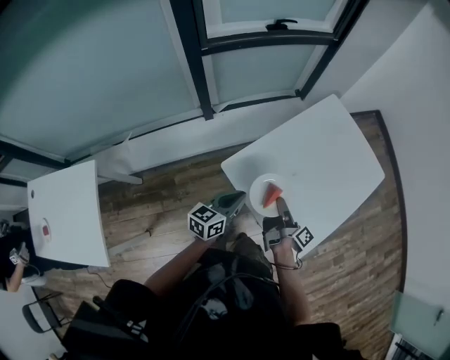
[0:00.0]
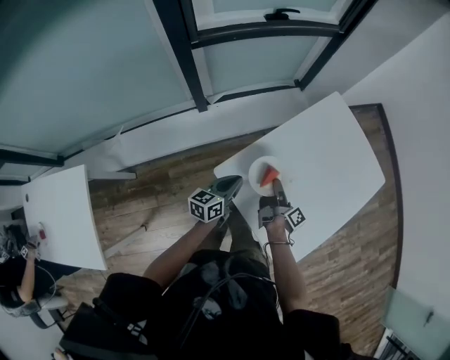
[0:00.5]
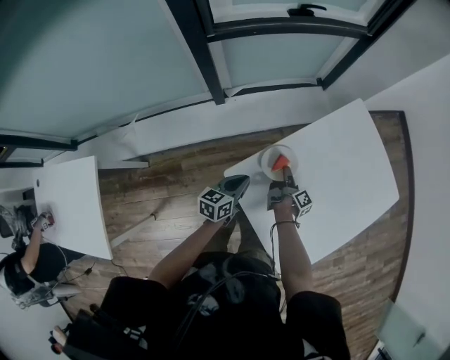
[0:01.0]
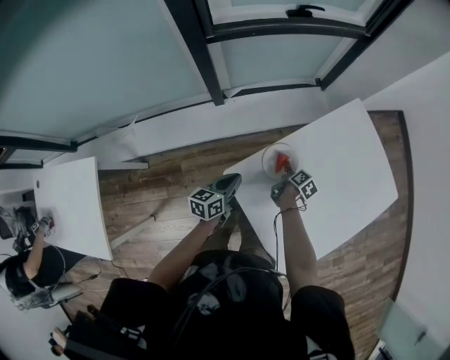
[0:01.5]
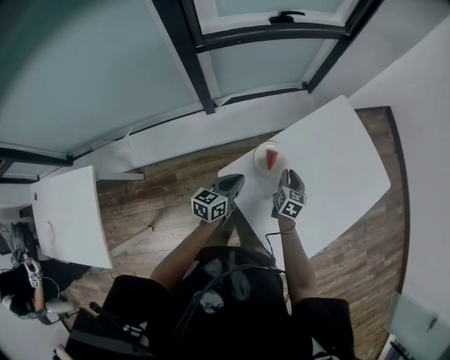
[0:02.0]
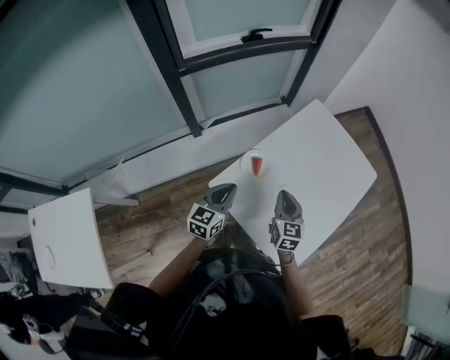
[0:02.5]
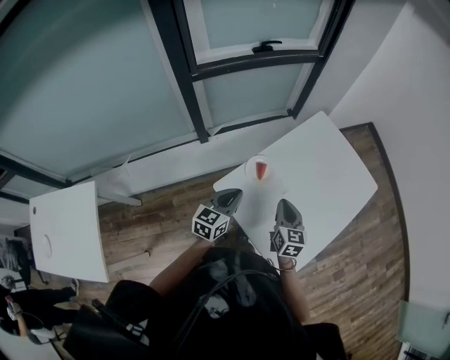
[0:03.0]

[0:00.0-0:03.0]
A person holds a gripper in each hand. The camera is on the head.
0:00.0 to 0:01.5: The left gripper changes place by some 15 cm.
0:01.5 to 0:03.0: The left gripper is displaced upward by roughly 10 cm, and turns by some 30 degrees.

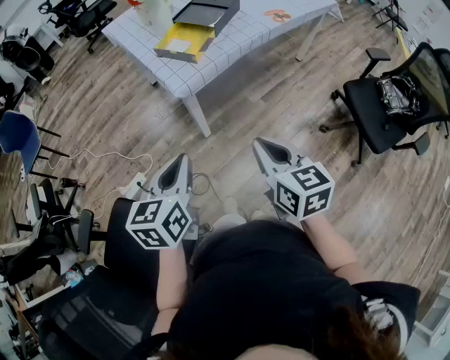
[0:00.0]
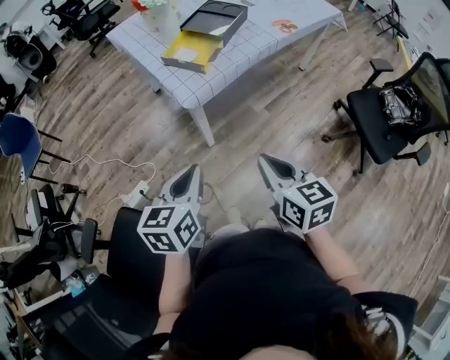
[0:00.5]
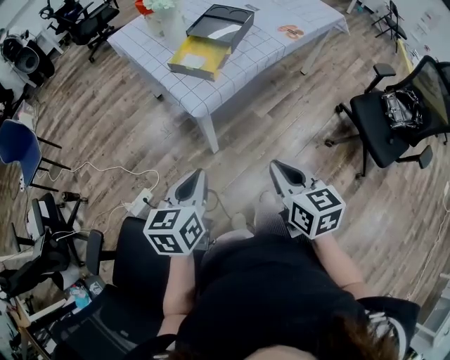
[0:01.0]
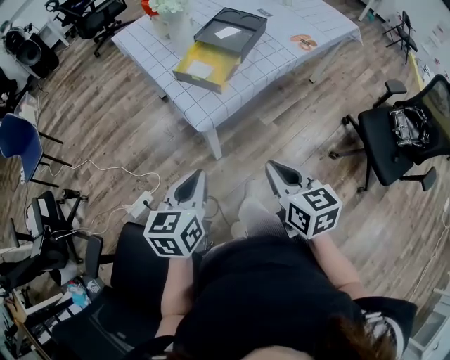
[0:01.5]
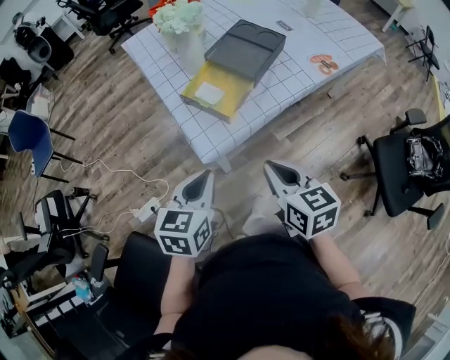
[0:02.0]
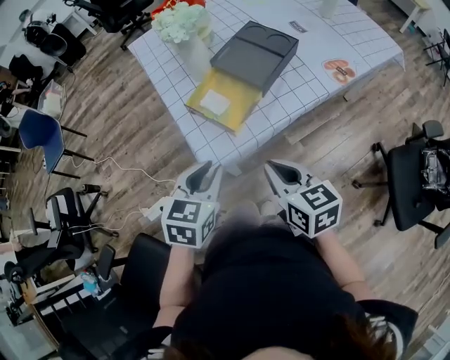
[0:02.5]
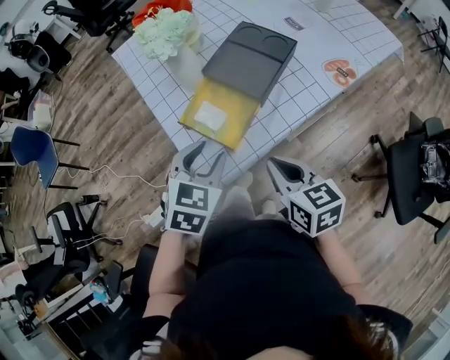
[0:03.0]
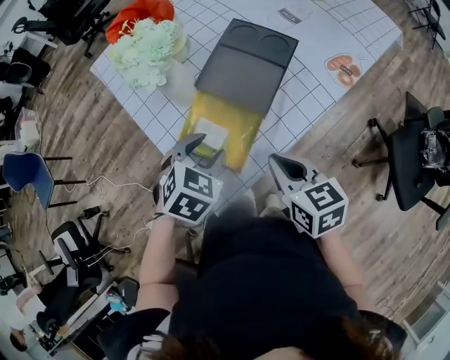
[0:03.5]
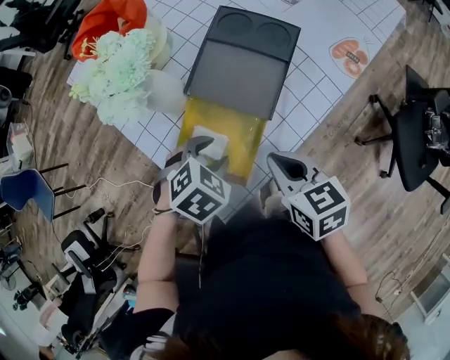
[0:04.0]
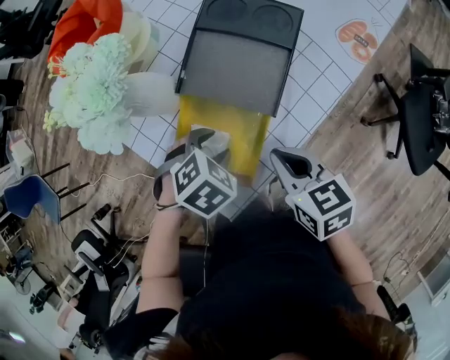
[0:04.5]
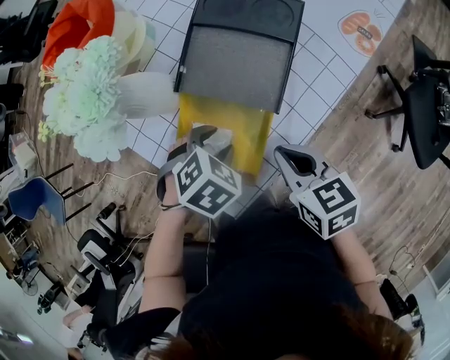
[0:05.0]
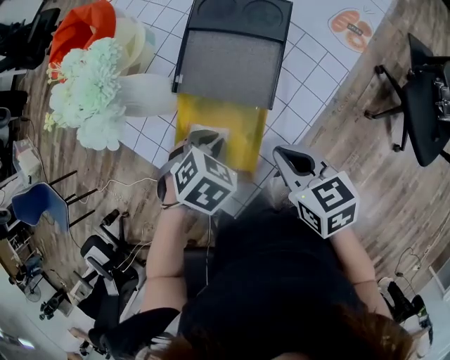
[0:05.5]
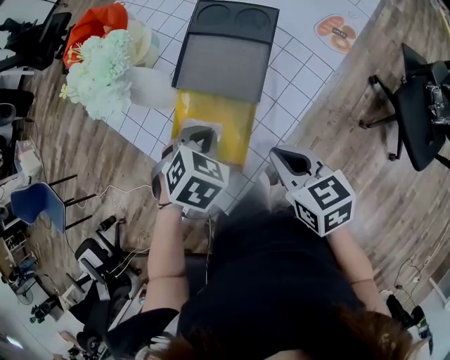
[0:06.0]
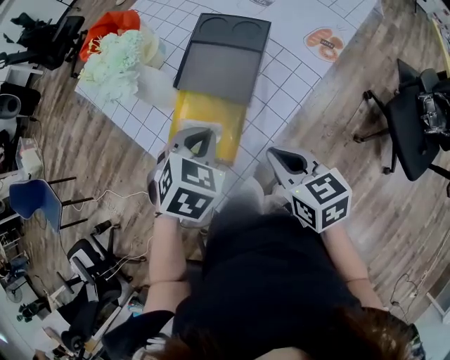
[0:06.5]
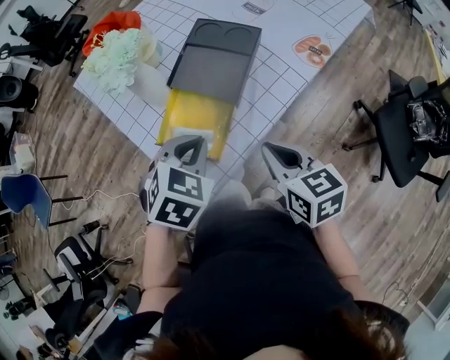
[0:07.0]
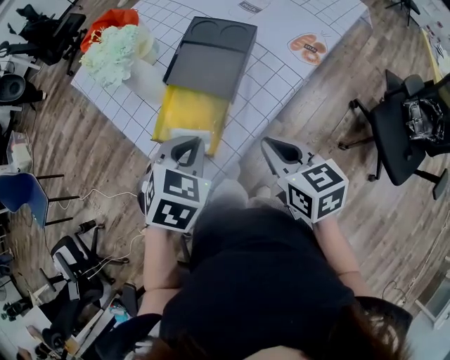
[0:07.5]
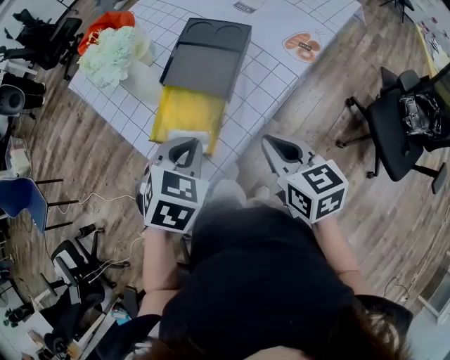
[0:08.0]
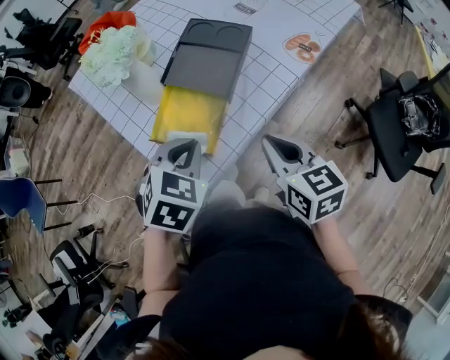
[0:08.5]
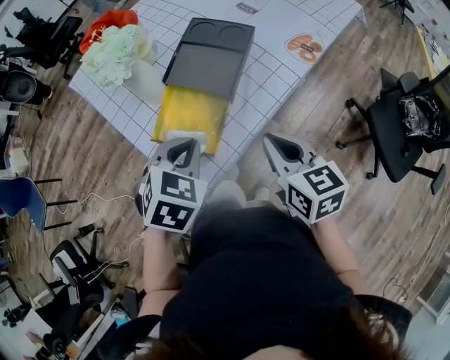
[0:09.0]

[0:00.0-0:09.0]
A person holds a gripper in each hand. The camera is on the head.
0:00.0 to 0:02.0: Both grippers move forward, about 25 cm.
0:02.0 to 0:04.5: The right gripper moves approximately 25 cm. The left gripper ends up about 35 cm from where it was, angles its fingers downward, by roughly 40 degrees, and opens.
0:04.5 to 0:07.0: The right gripper moves roughly 10 cm, while the left gripper shifts some 15 cm upward, turns by about 30 degrees, and closes up.
0:07.0 to 0:09.0: The grippers move only a little.

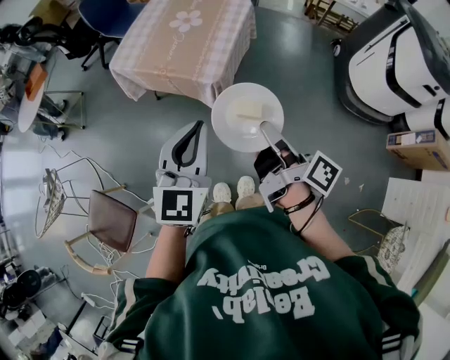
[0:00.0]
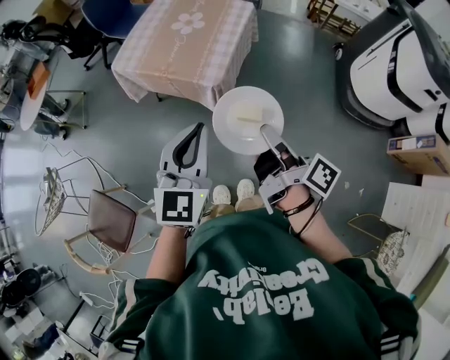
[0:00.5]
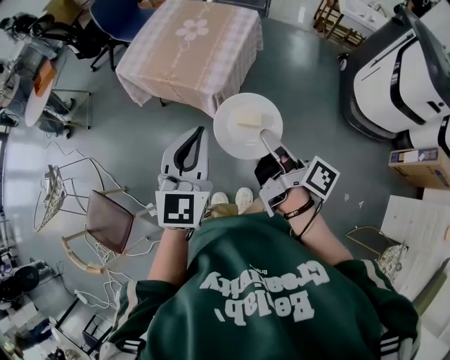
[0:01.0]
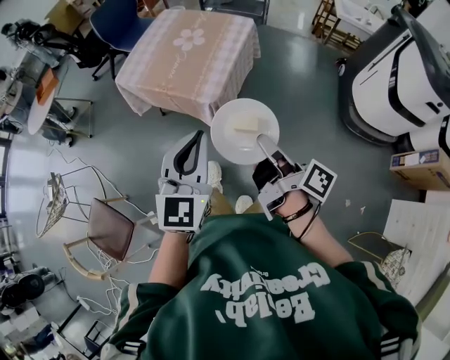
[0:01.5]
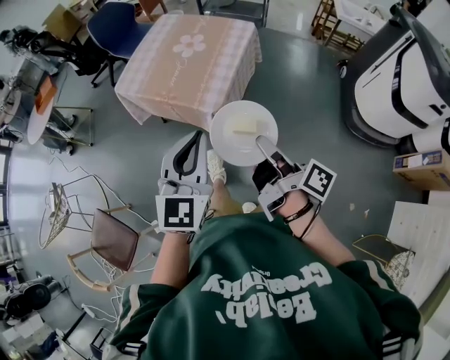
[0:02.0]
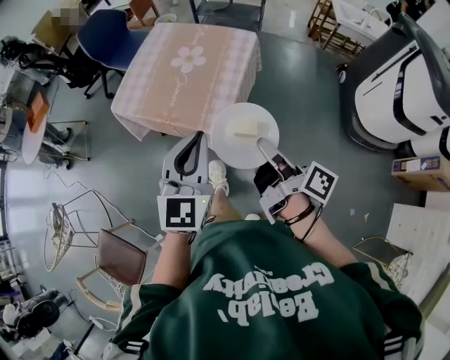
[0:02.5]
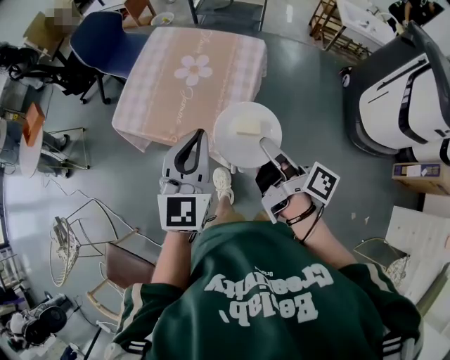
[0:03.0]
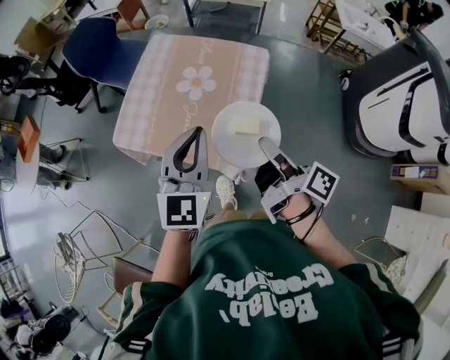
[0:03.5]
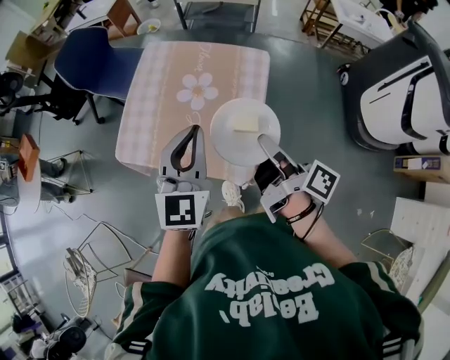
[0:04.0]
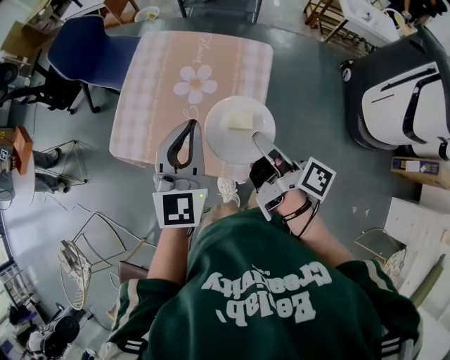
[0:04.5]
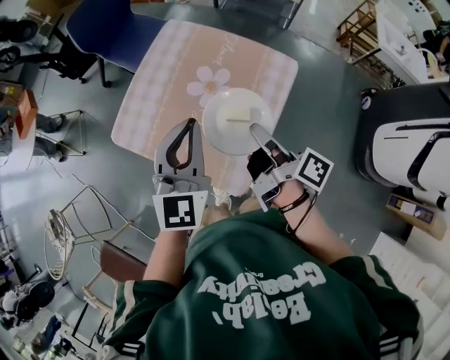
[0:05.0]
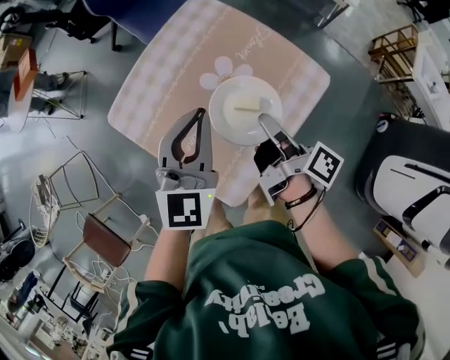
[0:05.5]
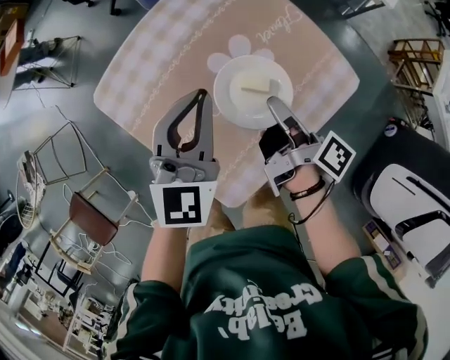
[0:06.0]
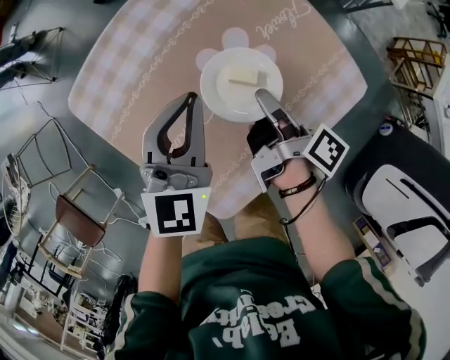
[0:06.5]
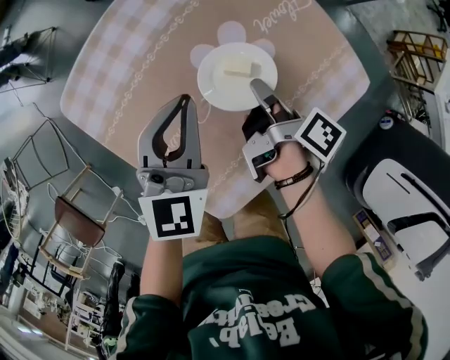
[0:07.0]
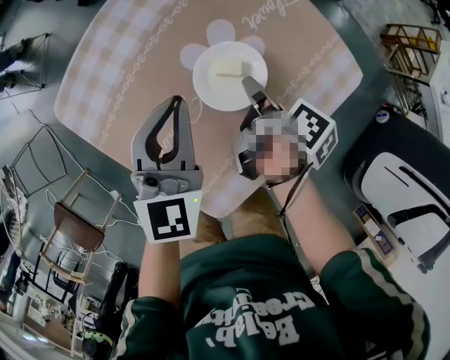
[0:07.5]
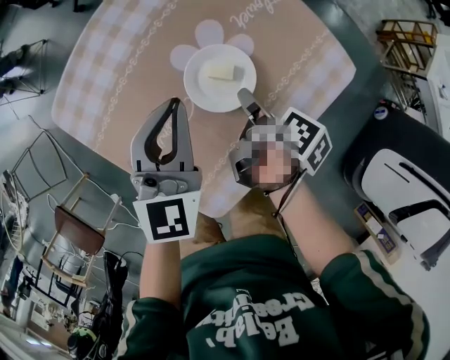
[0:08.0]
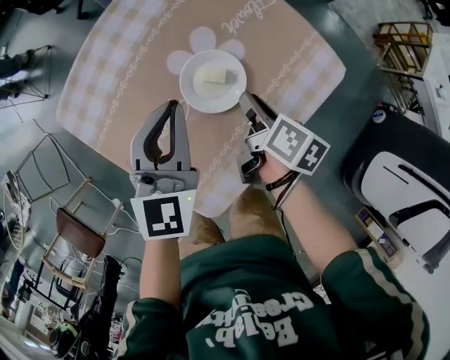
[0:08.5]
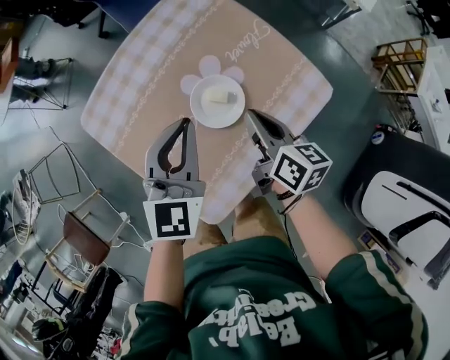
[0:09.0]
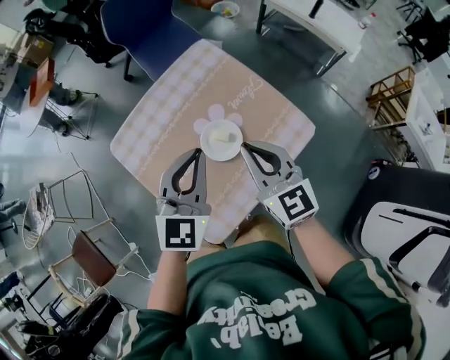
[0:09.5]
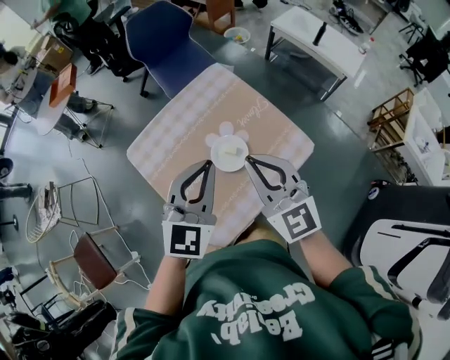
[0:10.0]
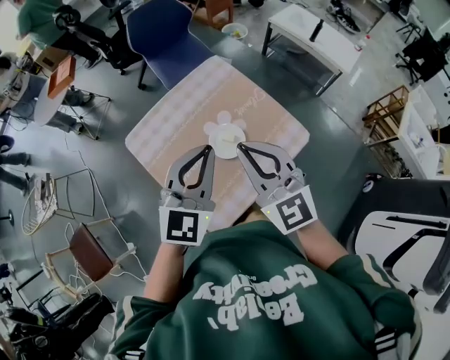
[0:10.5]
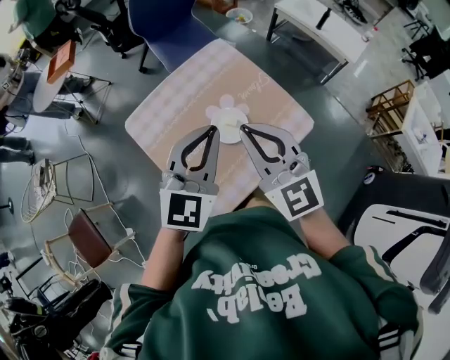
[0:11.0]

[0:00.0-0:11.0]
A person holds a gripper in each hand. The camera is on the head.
0:00.0 to 0:02.0: The left gripper ends up approximately 5 cm from where it was.
0:02.0 to 0:03.5: The left gripper shifts by about 30 cm.
0:03.5 to 0:05.5: The left gripper ends up about 20 cm from where it was, and rotates roughly 20 degrees.
0:05.5 to 0:07.5: The left gripper moves downward, about 15 cm.
0:07.5 to 0:09.0: The left gripper is displaced upward by roughly 5 cm.
0:09.0 to 0:11.0: The left gripper moves upward, about 20 cm.

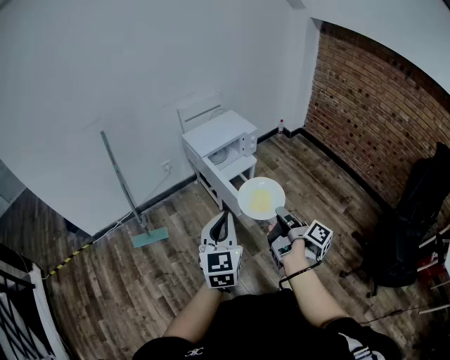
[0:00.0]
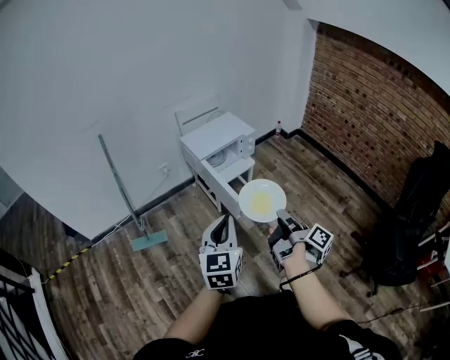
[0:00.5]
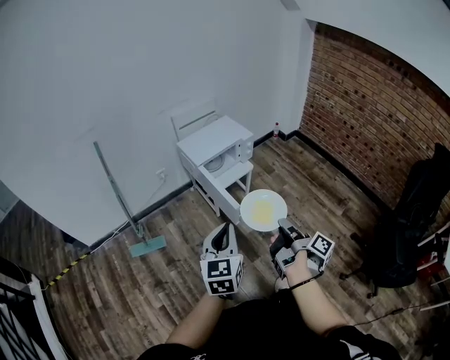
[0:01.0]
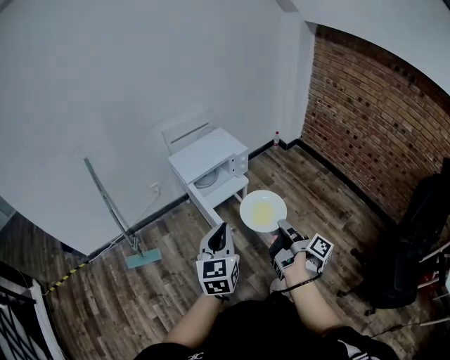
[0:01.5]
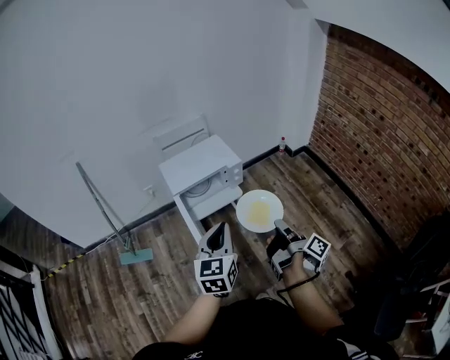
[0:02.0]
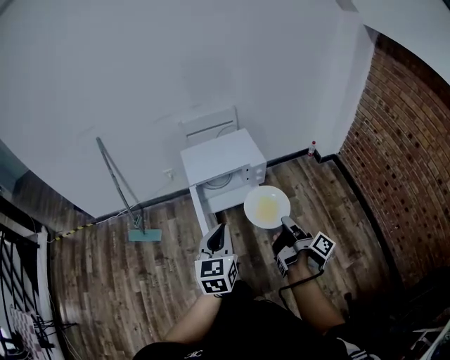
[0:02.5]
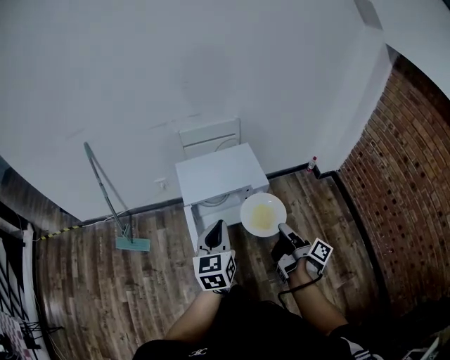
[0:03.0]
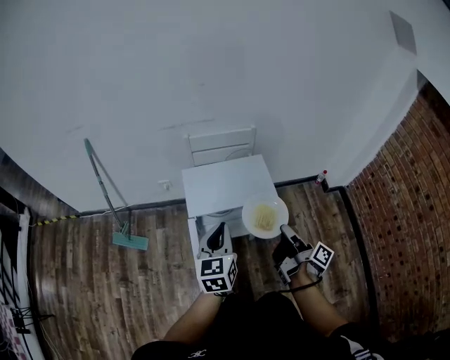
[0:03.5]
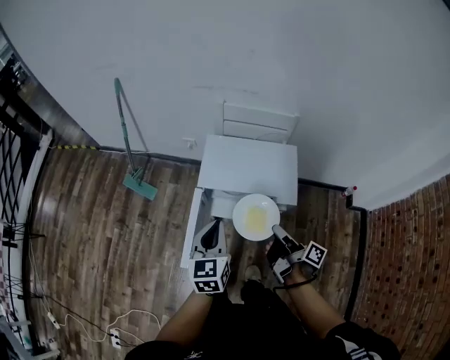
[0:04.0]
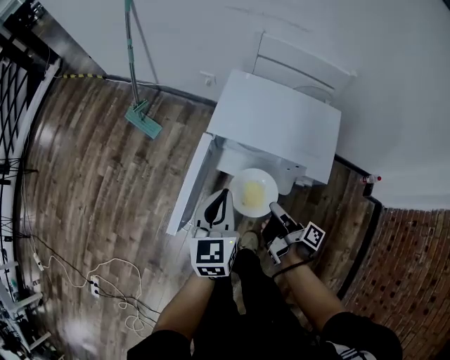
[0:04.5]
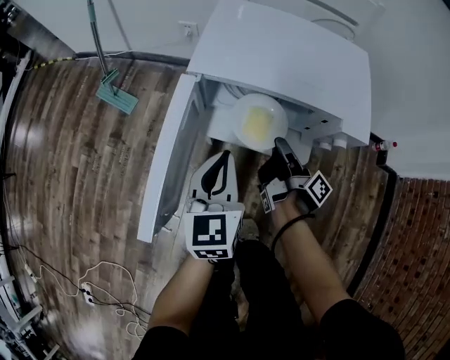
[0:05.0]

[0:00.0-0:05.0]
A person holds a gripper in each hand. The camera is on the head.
0:00.0 to 0:02.5: The left gripper changes place by approximately 35 cm, and swivels approximately 20 degrees.
0:02.5 to 0:05.0: The left gripper is displaced downward by approximately 40 cm, and swivels approximately 30 degrees.
